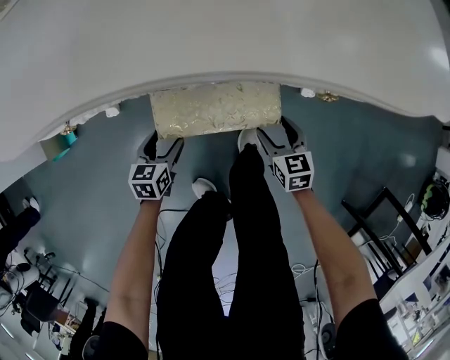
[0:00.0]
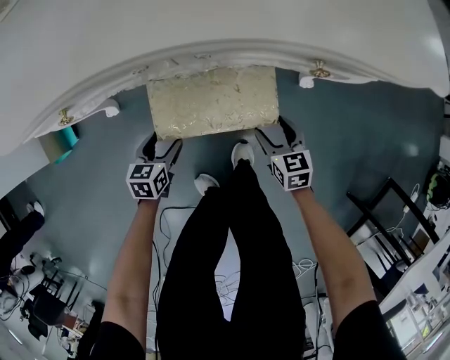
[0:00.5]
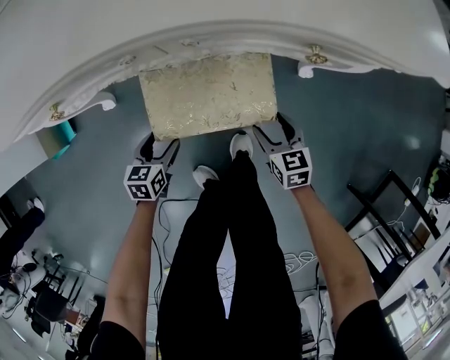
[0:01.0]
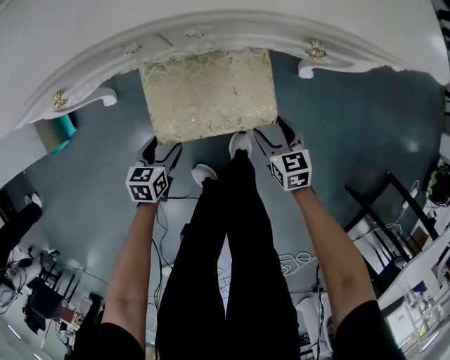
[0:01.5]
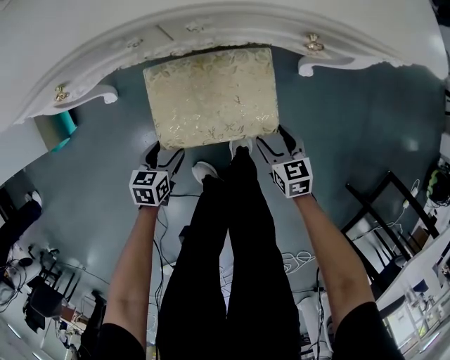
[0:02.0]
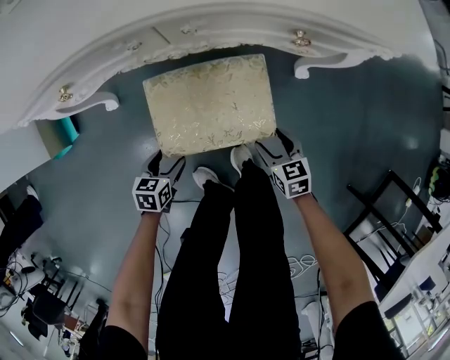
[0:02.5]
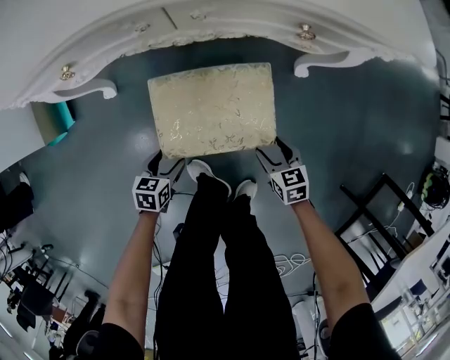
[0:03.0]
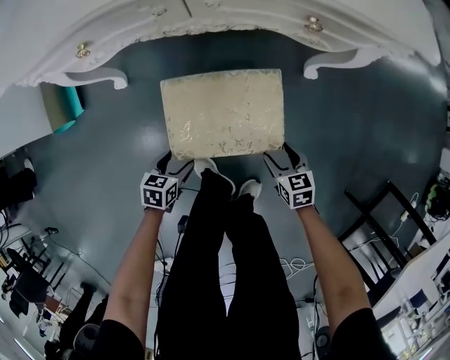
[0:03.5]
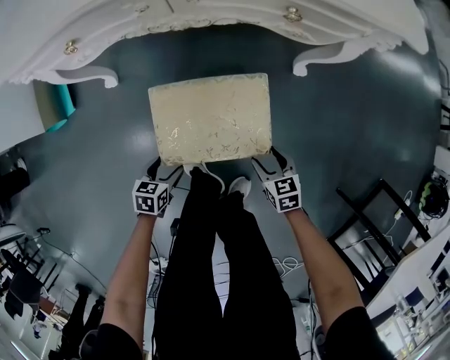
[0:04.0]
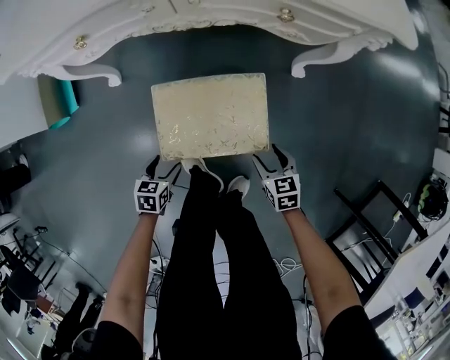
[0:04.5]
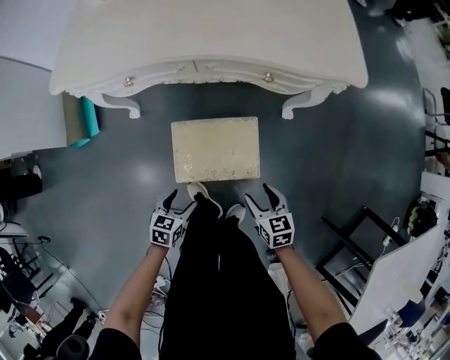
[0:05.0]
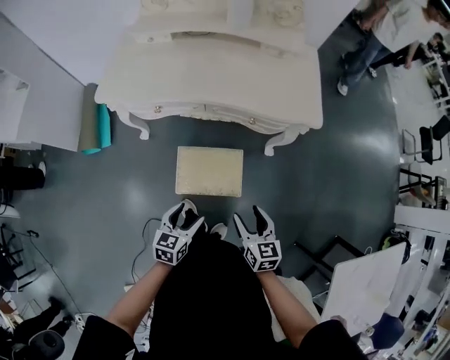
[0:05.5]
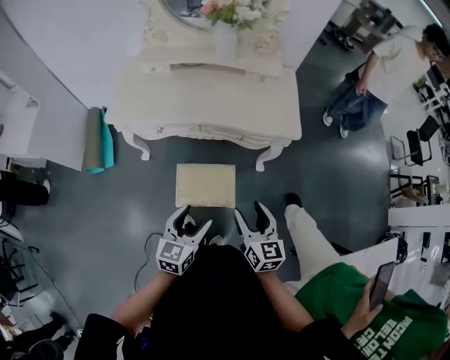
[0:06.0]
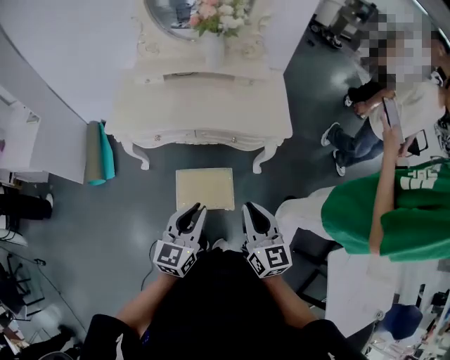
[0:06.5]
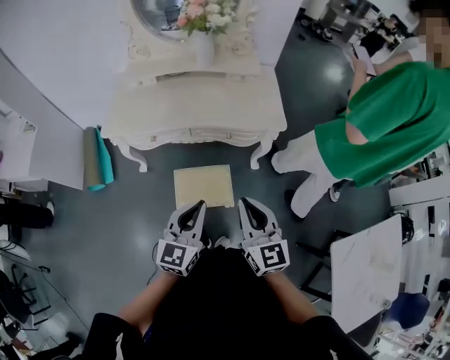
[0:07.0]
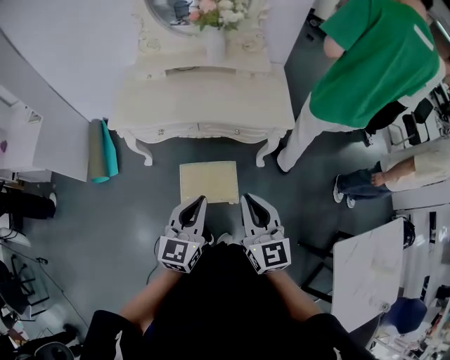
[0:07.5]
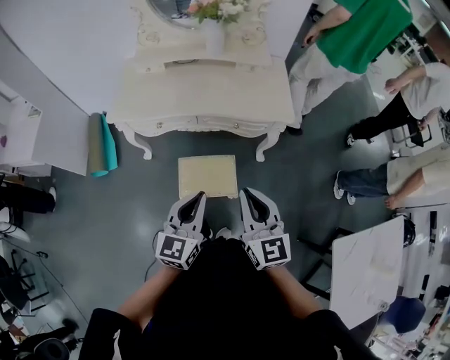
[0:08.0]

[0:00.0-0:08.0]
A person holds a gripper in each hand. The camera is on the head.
0:00.0 to 0:02.0: The grippers both shift backward by roughly 10 cm.
0:02.0 to 0:04.0: The grippers both shift backward by roughly 10 cm.
0:04.0 to 0:06.0: Both grippers move upward, some 60 cm. The right gripper tilts its fingers approximately 30 degrees upward. Meanwhile the left gripper tilts its fingers approximately 40 degrees upward.
0:06.0 to 0:08.0: Both grippers move upward, roughly 10 cm. The left gripper closes its fingers, while the right gripper closes.

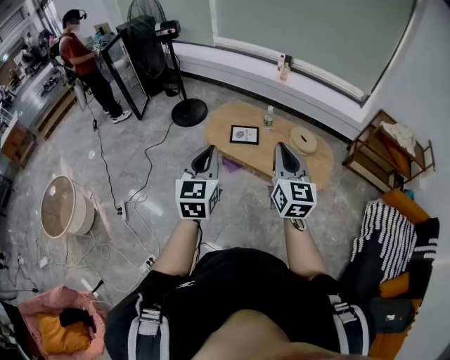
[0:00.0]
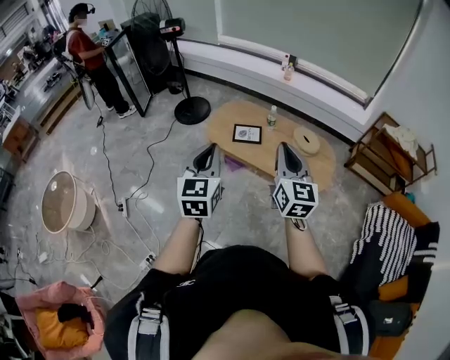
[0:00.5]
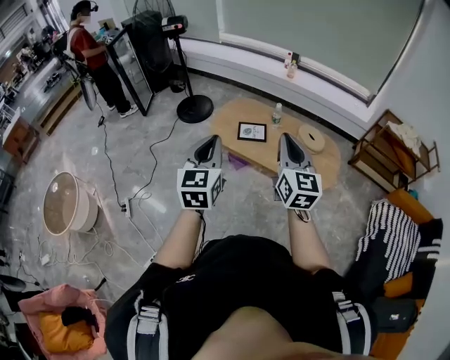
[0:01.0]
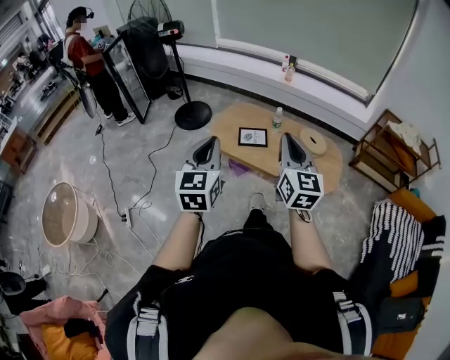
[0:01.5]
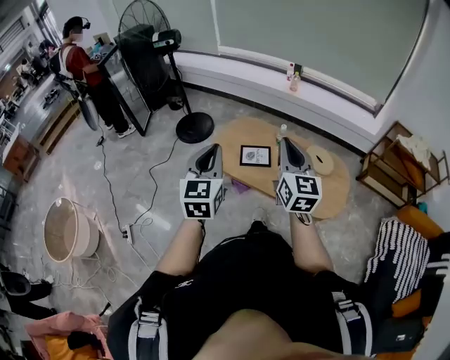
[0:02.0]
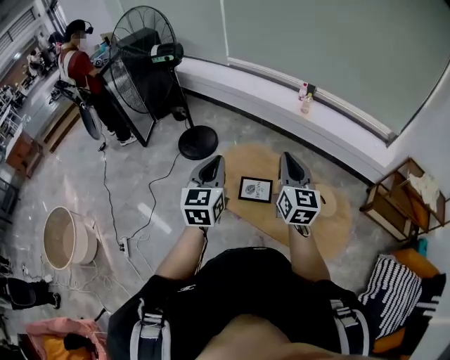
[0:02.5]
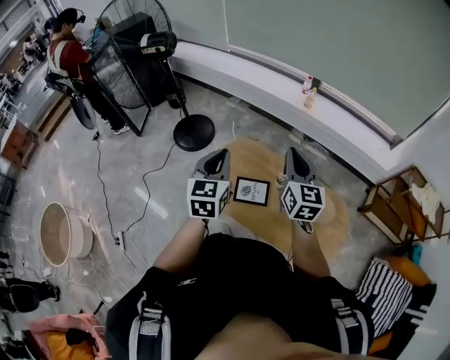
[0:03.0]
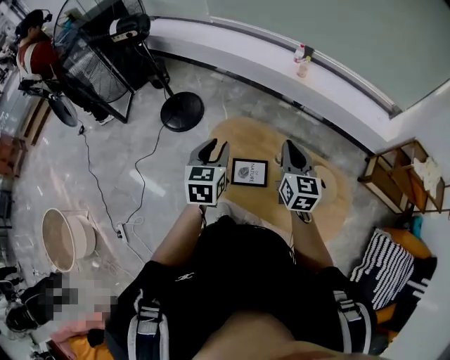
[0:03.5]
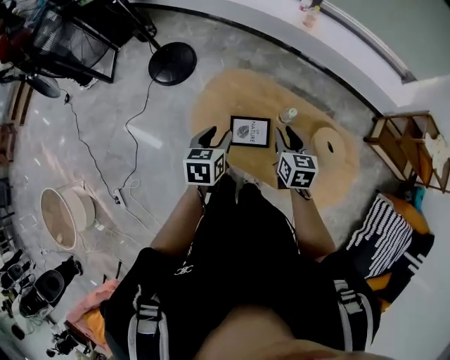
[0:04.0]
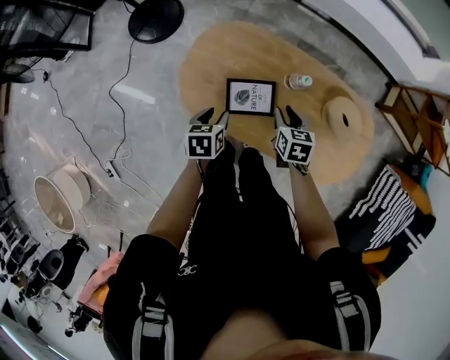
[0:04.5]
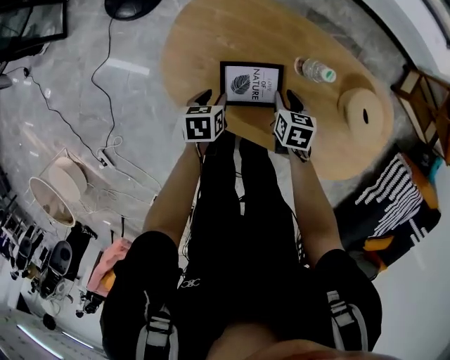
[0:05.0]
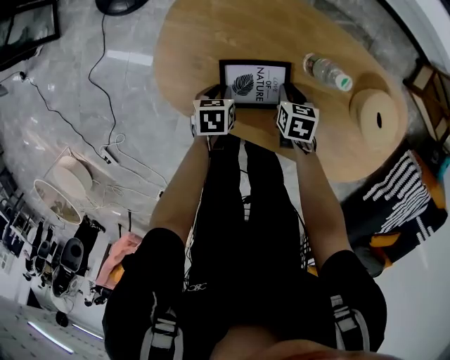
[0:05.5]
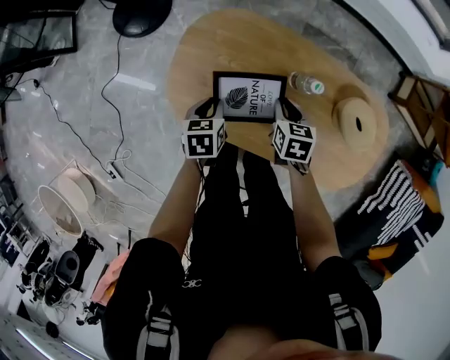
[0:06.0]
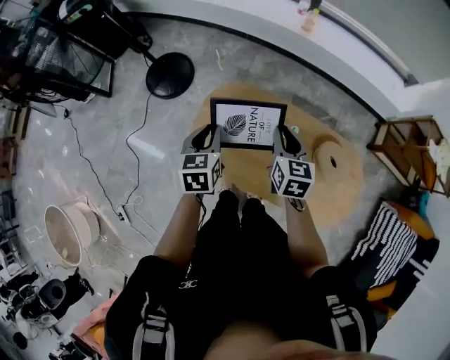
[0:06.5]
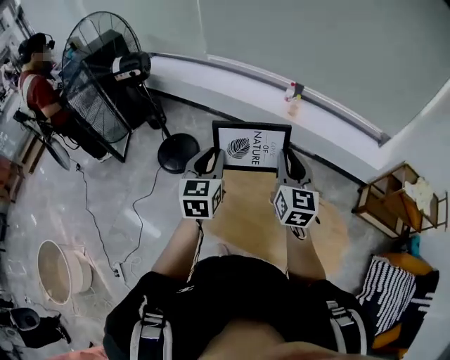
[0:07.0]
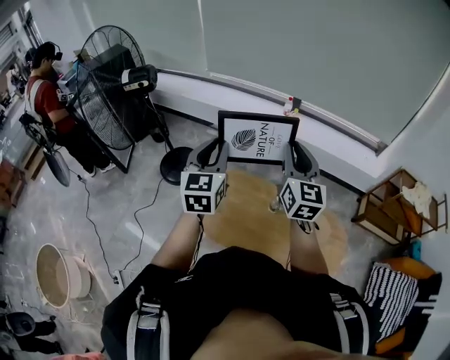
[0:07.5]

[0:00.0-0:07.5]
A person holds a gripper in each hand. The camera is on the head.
0:00.0 to 0:02.0: Both grippers move forward, some 20 cm.
0:02.0 to 0:04.0: The two grippers travel together, forward, some 50 cm. Both grippers travel together downward, approximately 30 cm. The left gripper points its fingers some 40 degrees further downward, and opens up. Meanwhile the right gripper points its fingers approximately 40 degrees further downward, and opens its fingers.
0:04.0 to 0:05.5: The grippers both shift downward by about 50 cm. The left gripper rotates approximately 30 degrees, and closes, while the right gripper rotates about 30 degrees.
0:05.5 to 0:07.5: Both grippers move upward, some 80 cm. The left gripper angles its fingers upward, by roughly 60 degrees; the right gripper tilts its fingers roughly 70 degrees upward.

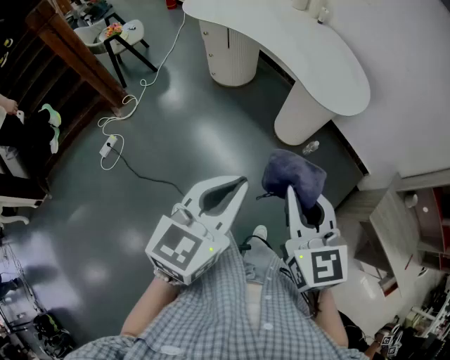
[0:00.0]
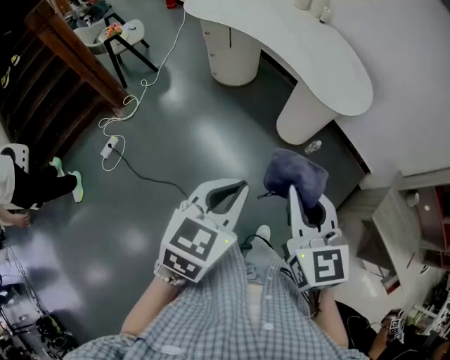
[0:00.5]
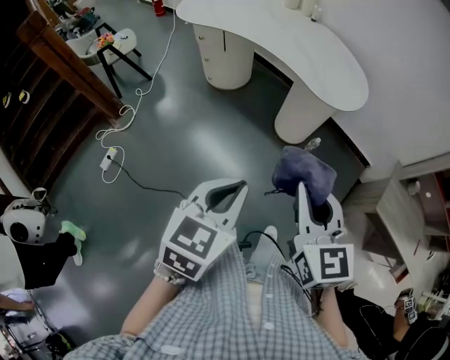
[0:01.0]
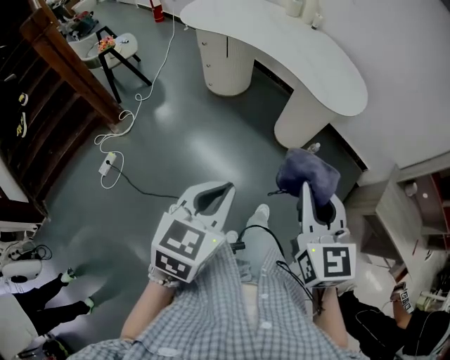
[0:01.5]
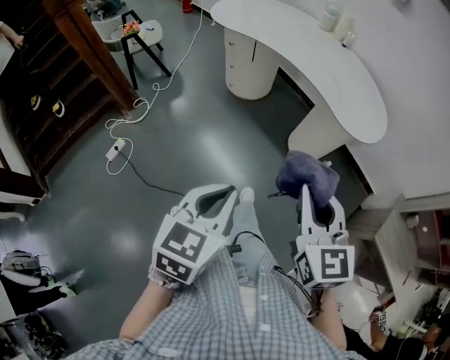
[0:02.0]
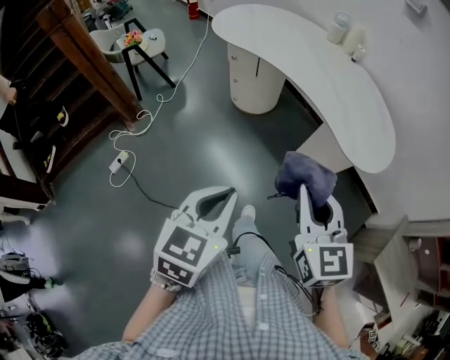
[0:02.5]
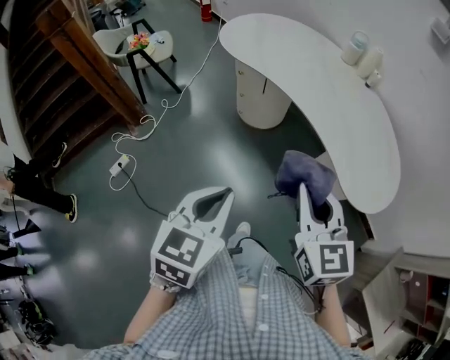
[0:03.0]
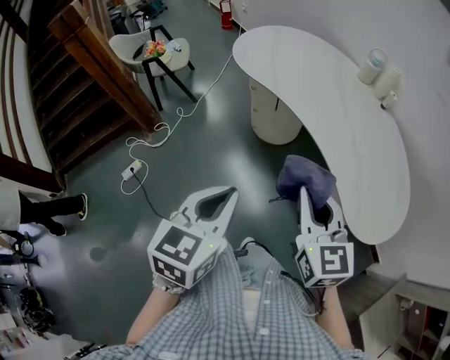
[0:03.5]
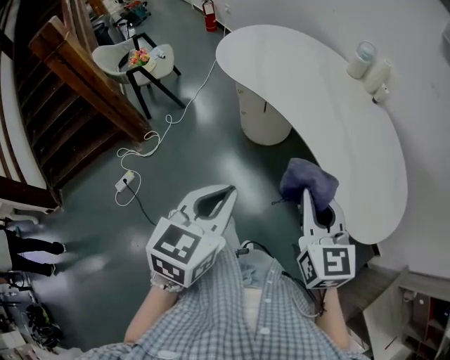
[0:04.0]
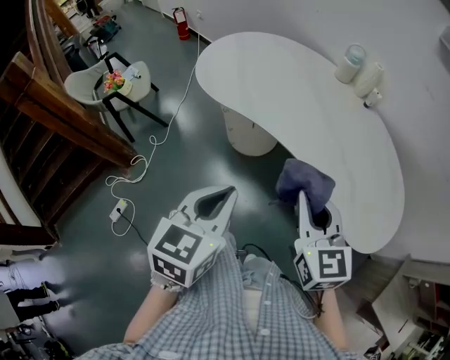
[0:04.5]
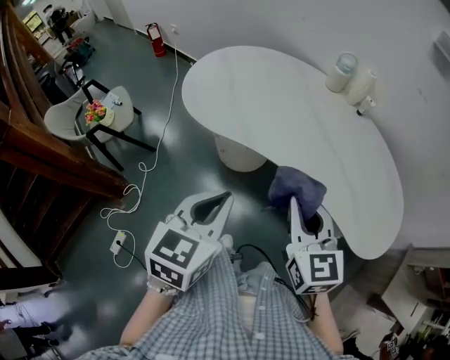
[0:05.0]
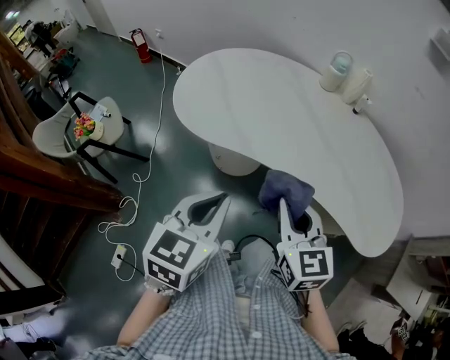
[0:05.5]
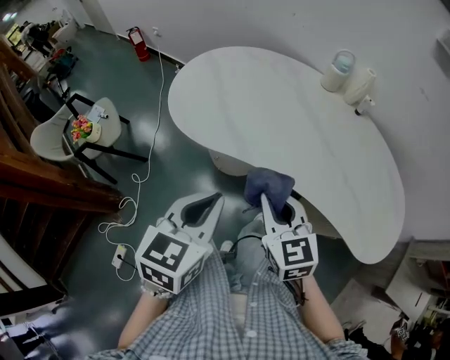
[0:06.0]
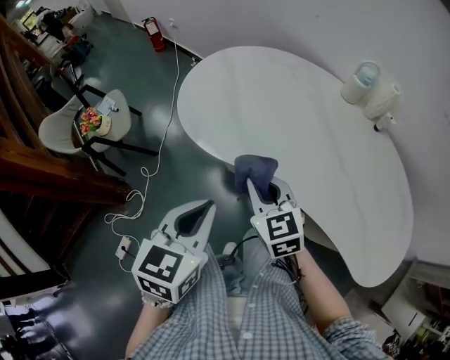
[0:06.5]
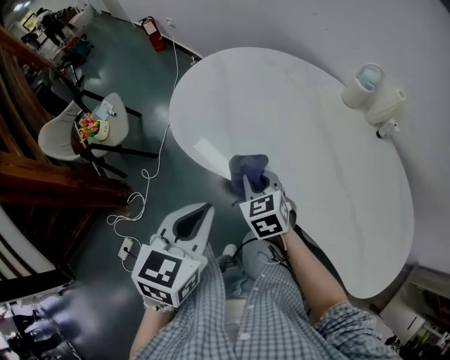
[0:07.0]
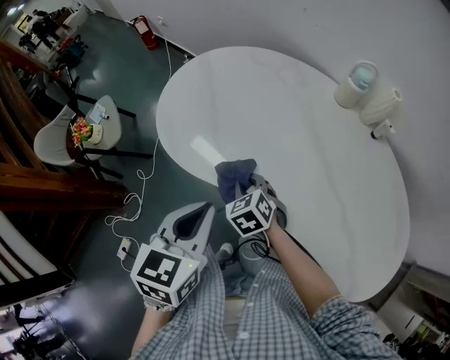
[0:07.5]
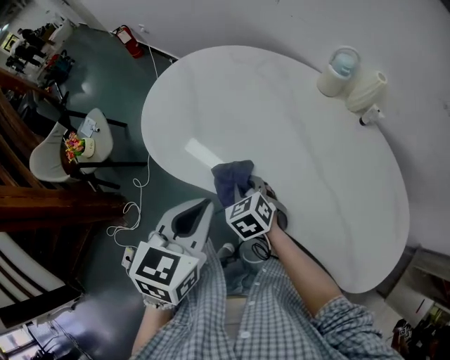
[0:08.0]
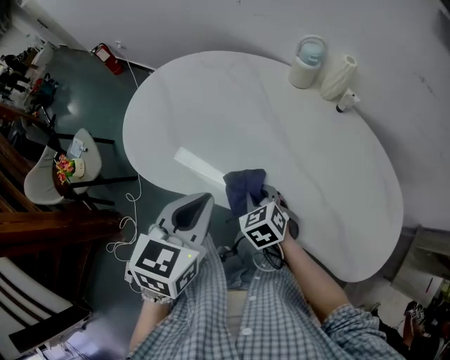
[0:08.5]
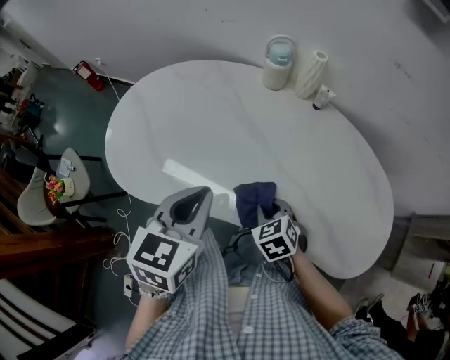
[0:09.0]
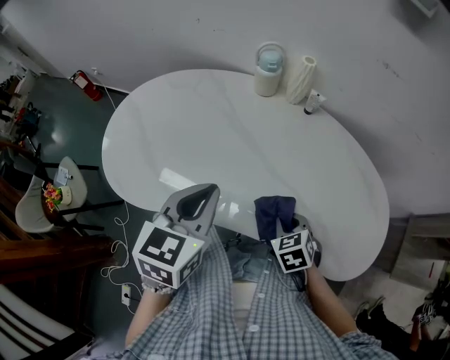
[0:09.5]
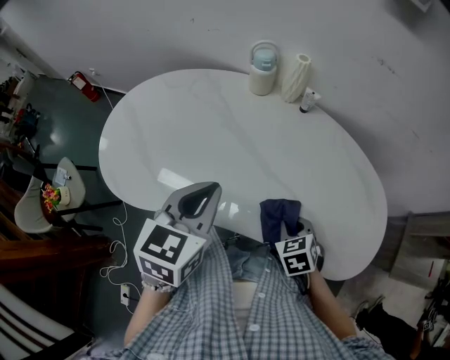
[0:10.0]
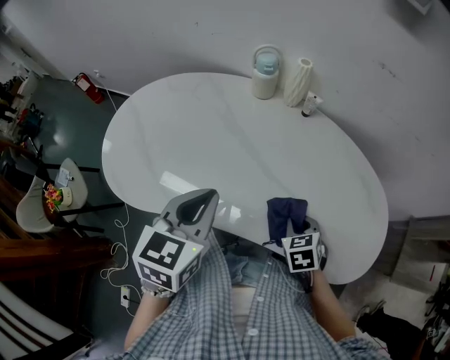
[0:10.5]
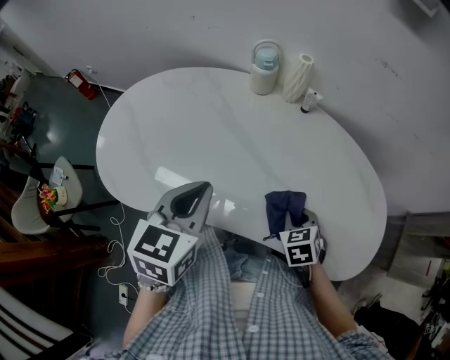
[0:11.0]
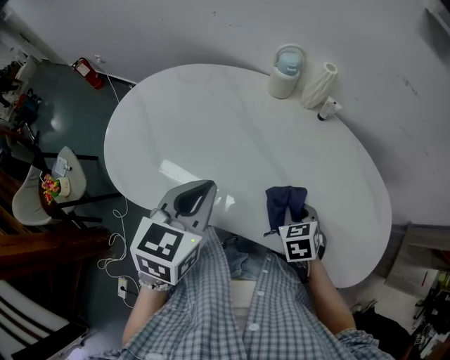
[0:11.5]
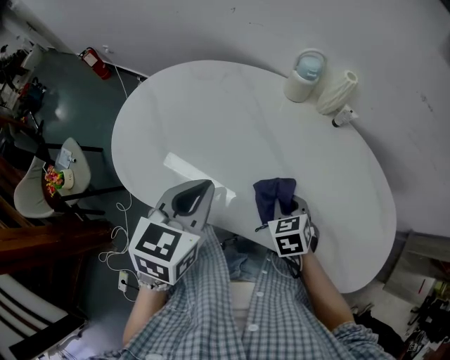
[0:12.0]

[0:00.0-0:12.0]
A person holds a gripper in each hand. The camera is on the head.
0:00.0 to 0:02.0: Both grippers move to the left, some 10 cm.
0:02.0 to 0:04.0: Both grippers move forward, roughly 35 cm.
0:04.0 to 0:06.0: Both grippers travel together forward and to the left, roughly 30 cm.
0:06.0 to 0:08.0: The left gripper moves forward and to the right, approximately 15 cm, while the right gripper is displaced forward and downward by some 25 cm, and changes its angle by about 30 degrees.
0:08.0 to 0:10.0: The right gripper is displaced to the right by approximately 30 cm, and rotates about 30 degrees, while the left gripper travels to the right and forward by roughly 15 cm, and swivels roughly 20 degrees.
0:10.0 to 0:12.0: The left gripper heads to the left, covering approximately 10 cm. Meanwhile the right gripper moves to the left and forward, some 15 cm.
